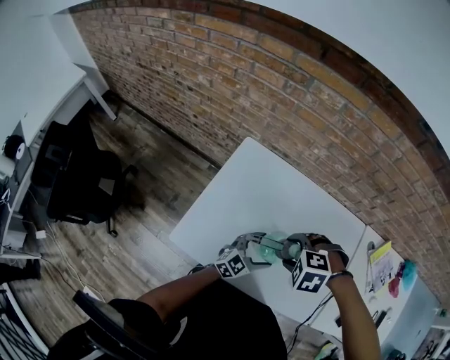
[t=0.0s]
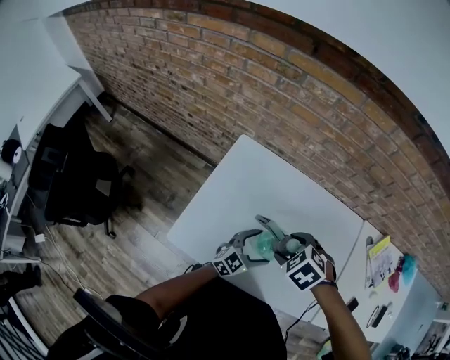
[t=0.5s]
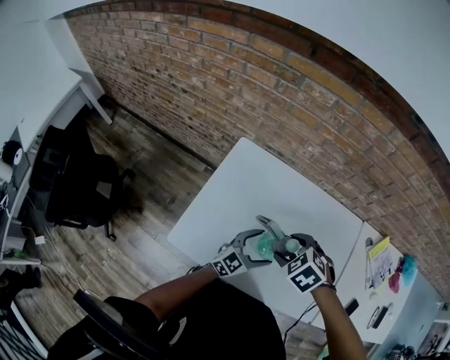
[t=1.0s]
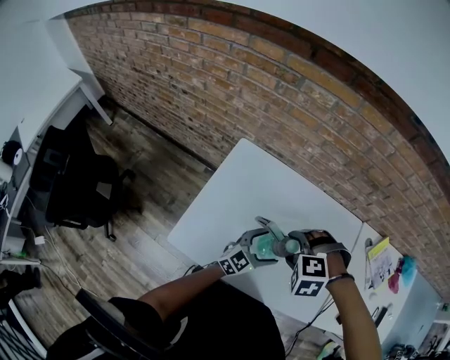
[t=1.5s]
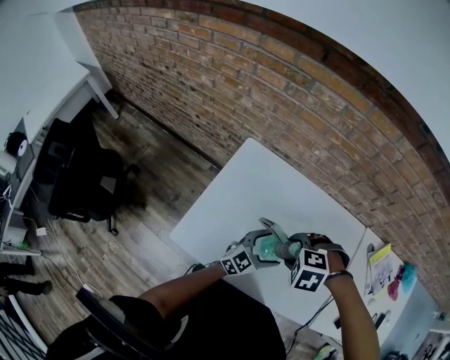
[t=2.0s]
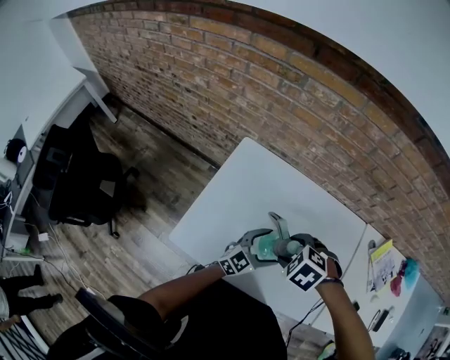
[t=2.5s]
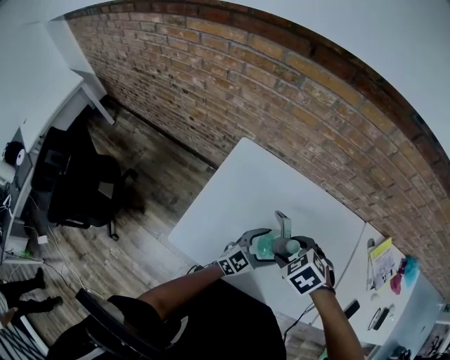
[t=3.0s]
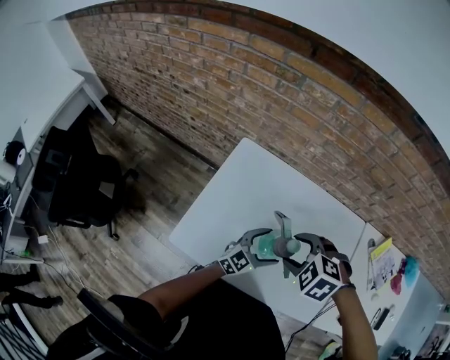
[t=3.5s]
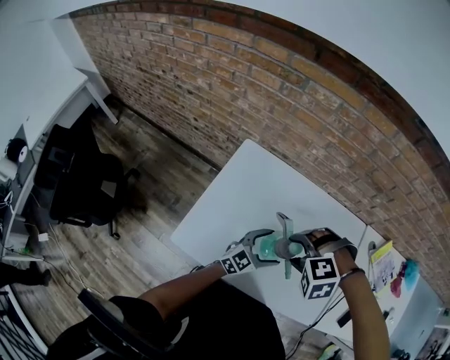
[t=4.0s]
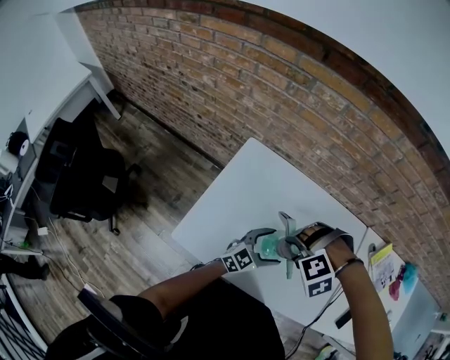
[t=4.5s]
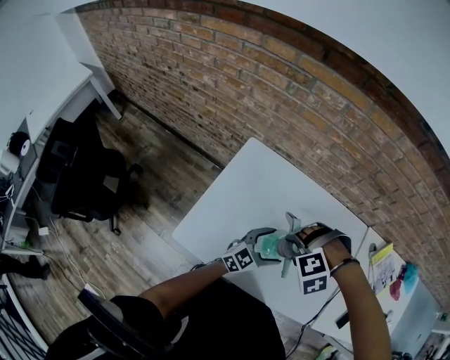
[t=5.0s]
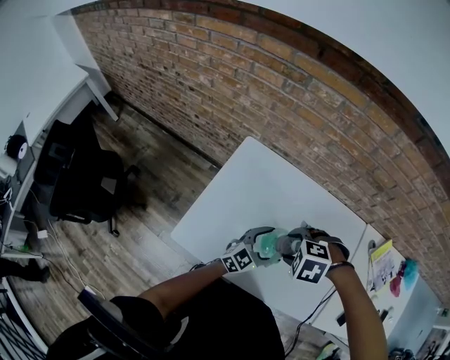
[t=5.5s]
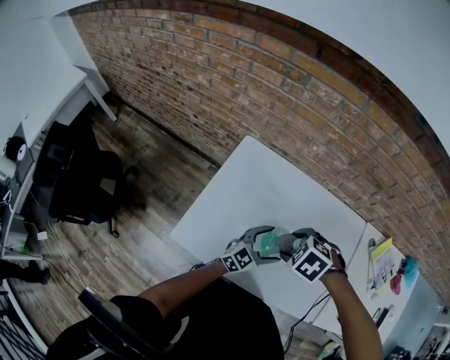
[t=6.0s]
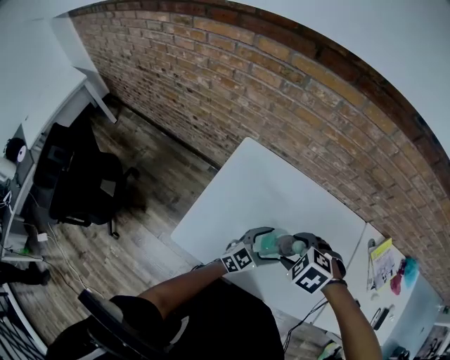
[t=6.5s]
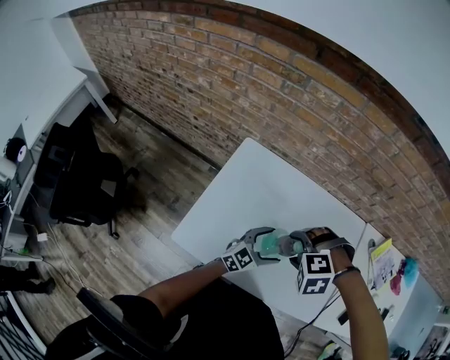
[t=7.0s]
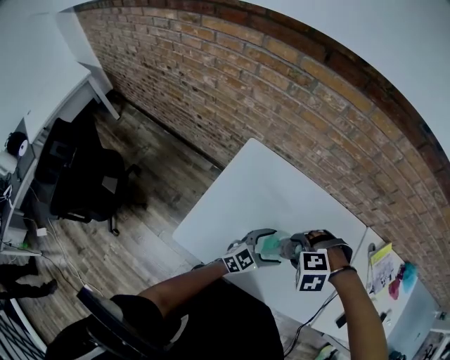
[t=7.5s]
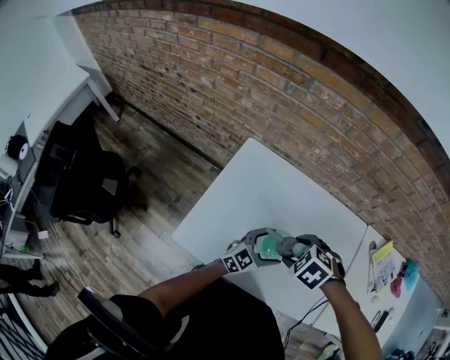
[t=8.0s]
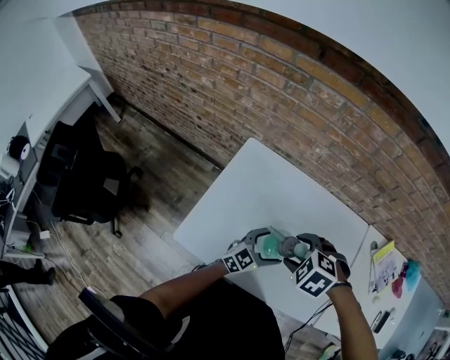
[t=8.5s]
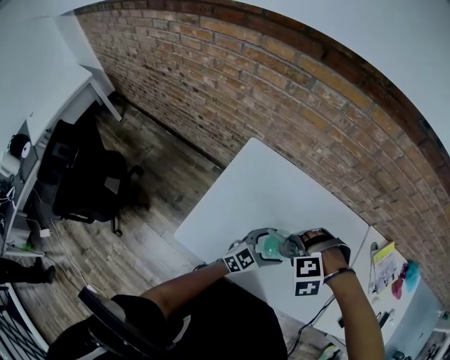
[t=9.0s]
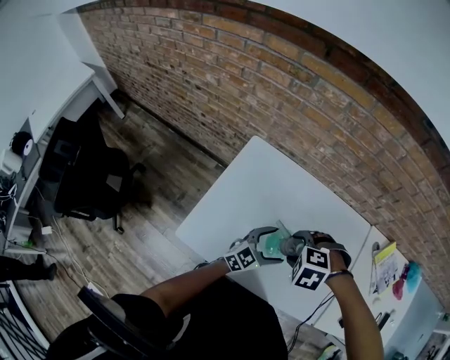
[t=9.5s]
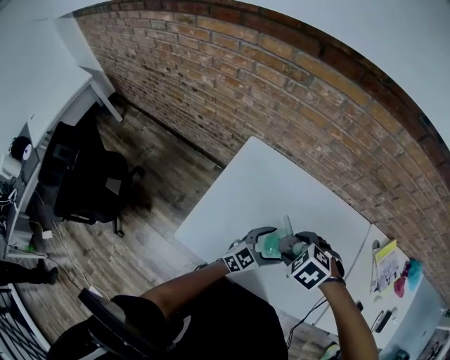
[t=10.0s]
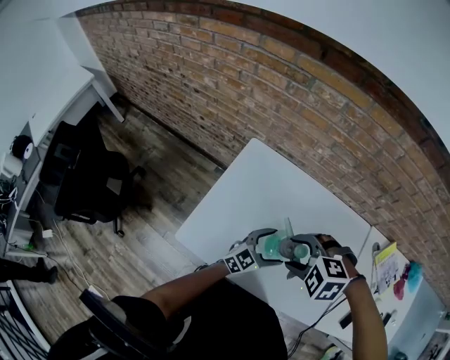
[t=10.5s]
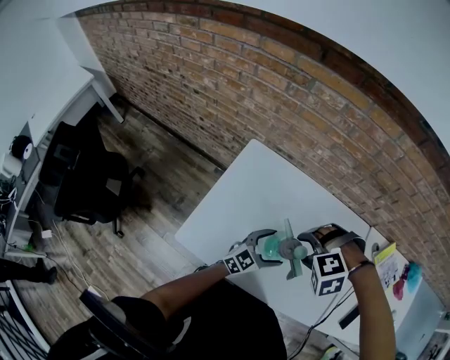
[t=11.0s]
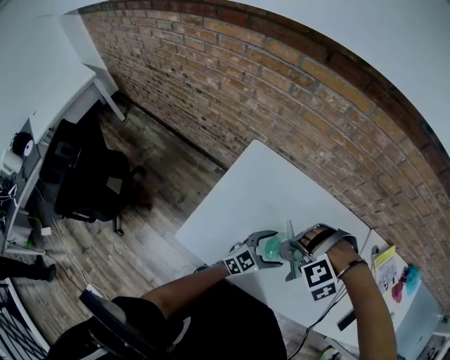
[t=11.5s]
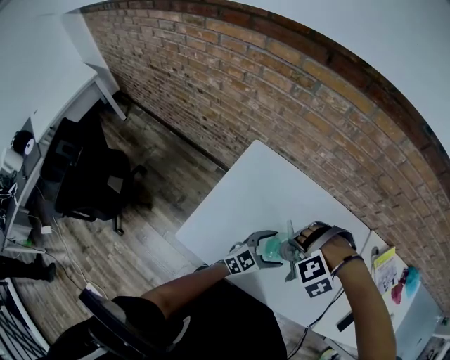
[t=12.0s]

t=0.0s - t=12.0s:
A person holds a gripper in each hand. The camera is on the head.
t=0.0s - t=2.0s: The left gripper moves approximately 5 cm.
t=4.0s - t=6.0s: The right gripper twists approximately 40 degrees clockwise, seen from behind.
t=10.0s - t=12.0s: The right gripper twists about 70 degrees counterclockwise, seen from behind.

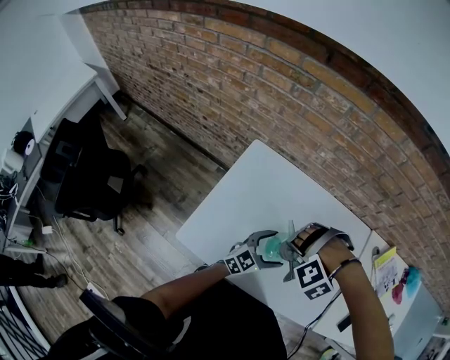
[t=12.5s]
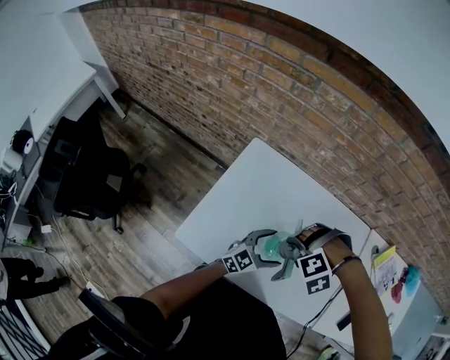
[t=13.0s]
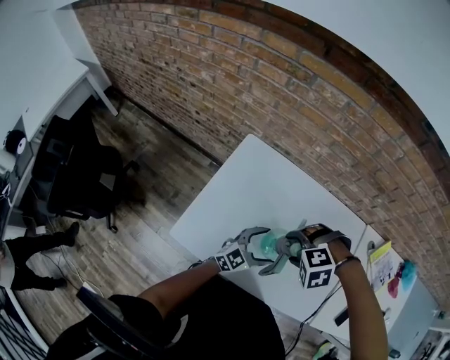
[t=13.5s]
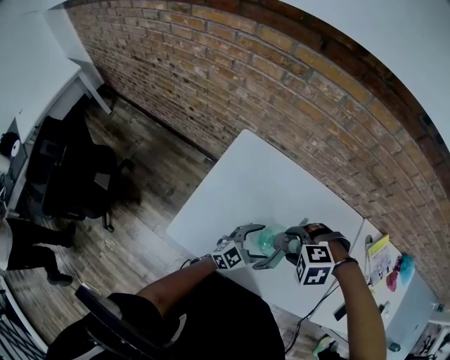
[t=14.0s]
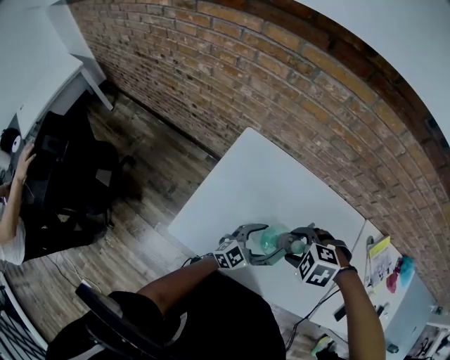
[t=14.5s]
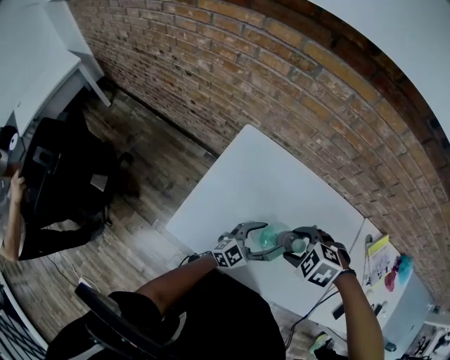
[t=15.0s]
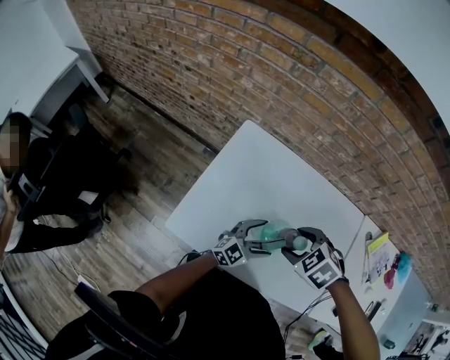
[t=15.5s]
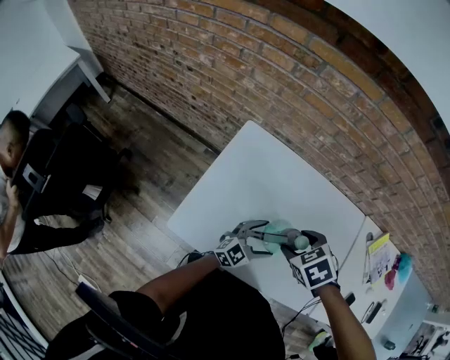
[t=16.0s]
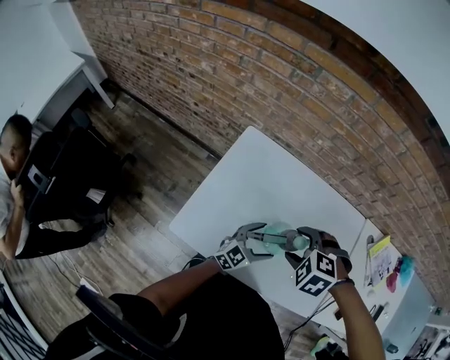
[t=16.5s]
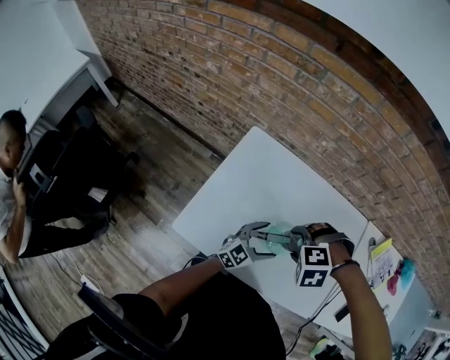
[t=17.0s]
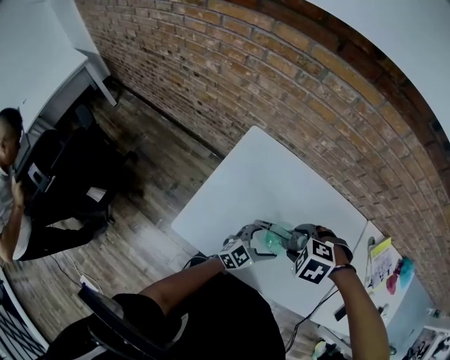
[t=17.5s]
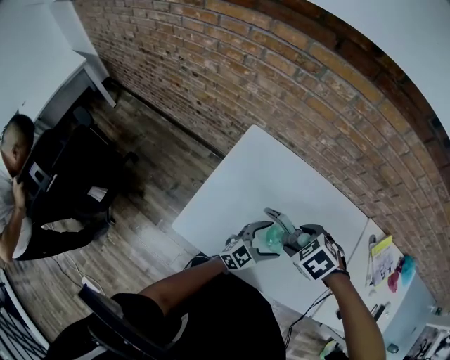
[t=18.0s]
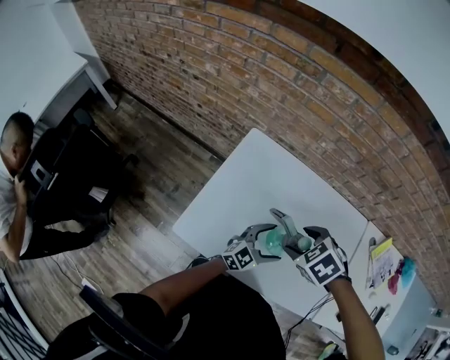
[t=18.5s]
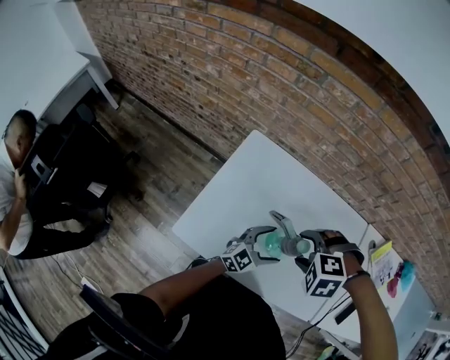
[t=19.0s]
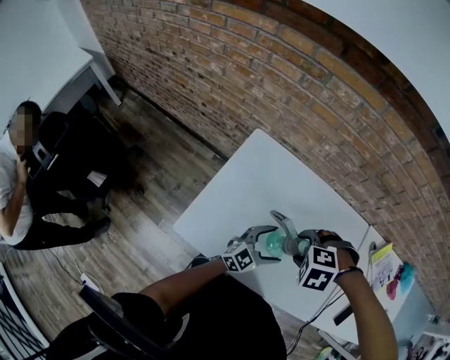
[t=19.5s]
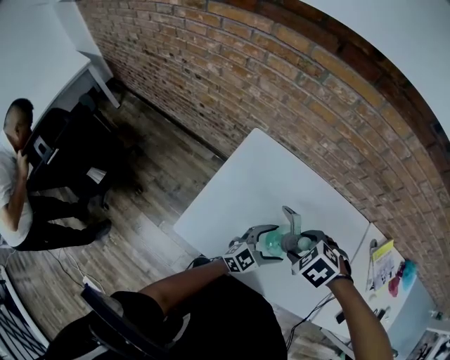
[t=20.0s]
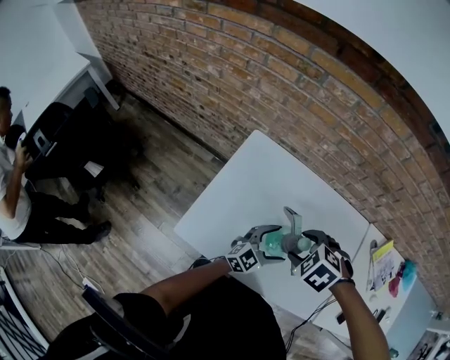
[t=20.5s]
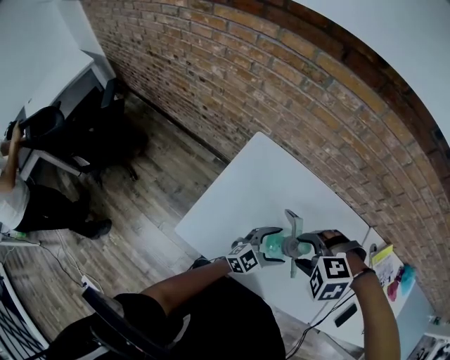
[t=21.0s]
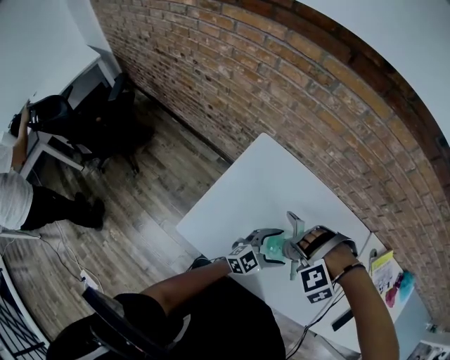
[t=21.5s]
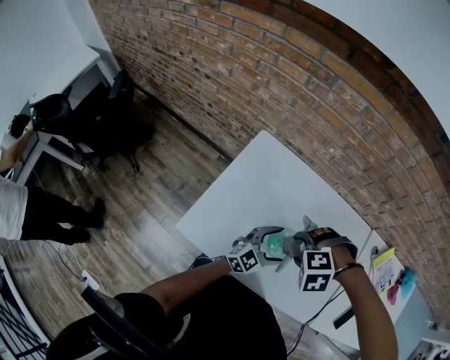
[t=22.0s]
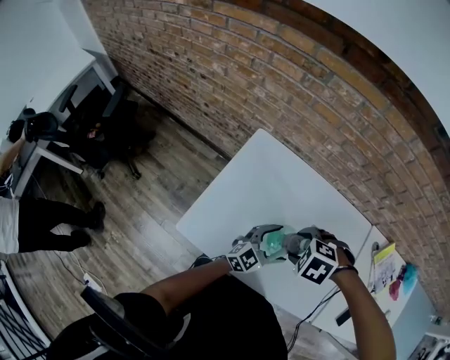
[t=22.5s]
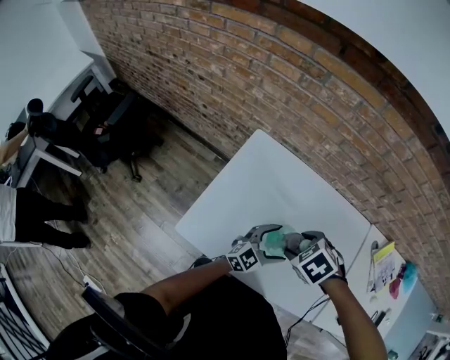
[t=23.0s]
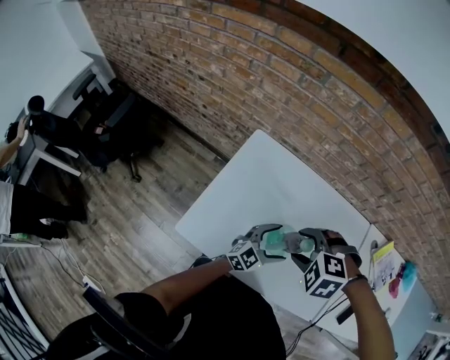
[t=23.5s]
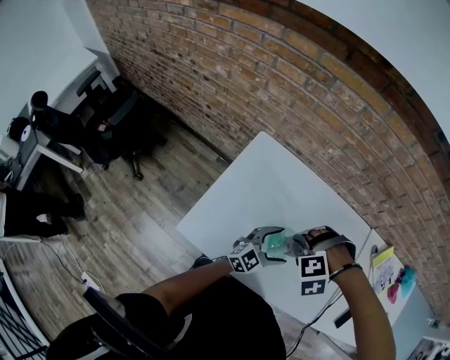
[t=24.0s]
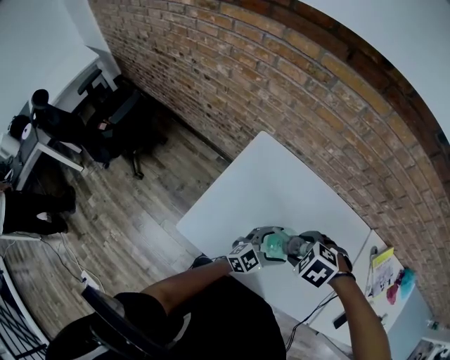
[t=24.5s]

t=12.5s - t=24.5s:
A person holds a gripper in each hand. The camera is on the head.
t=12.5s - t=14.5s: The right gripper rotates around the line of its fingers by approximately 60 degrees, clockwise from behind.
t=16.5s - t=18.5s: The right gripper rotates roughly 30 degrees.

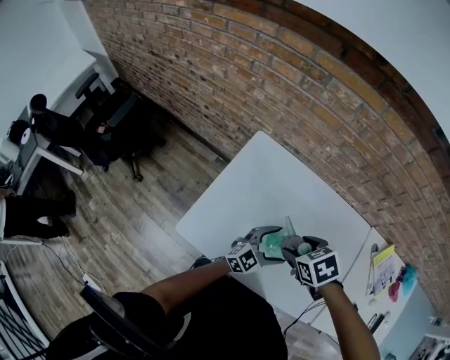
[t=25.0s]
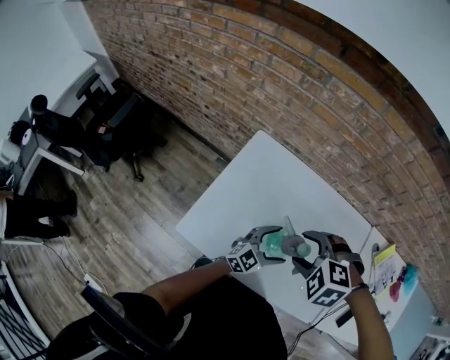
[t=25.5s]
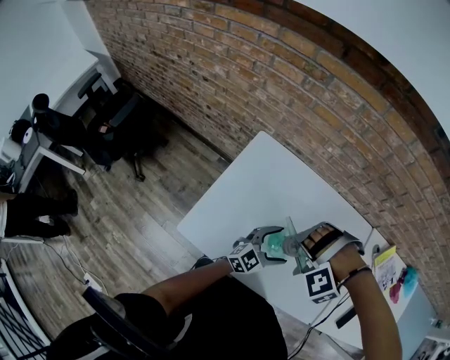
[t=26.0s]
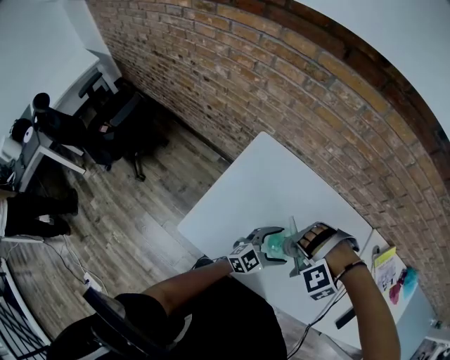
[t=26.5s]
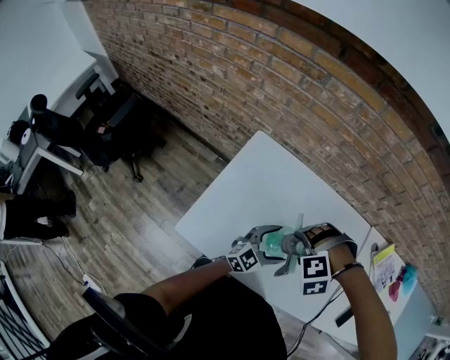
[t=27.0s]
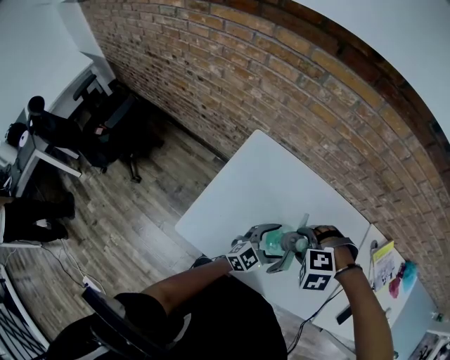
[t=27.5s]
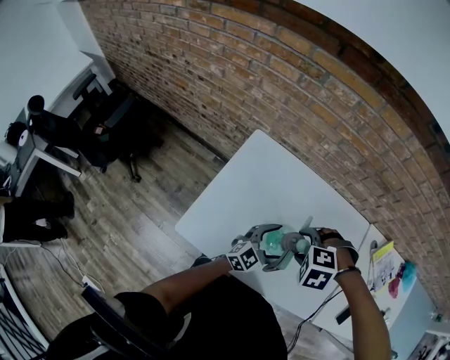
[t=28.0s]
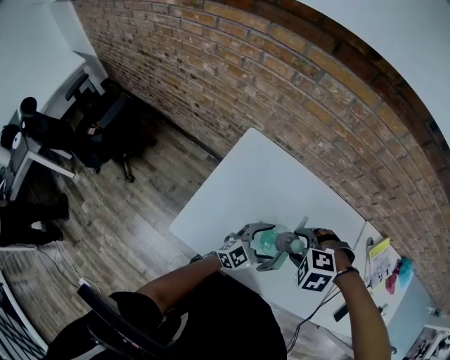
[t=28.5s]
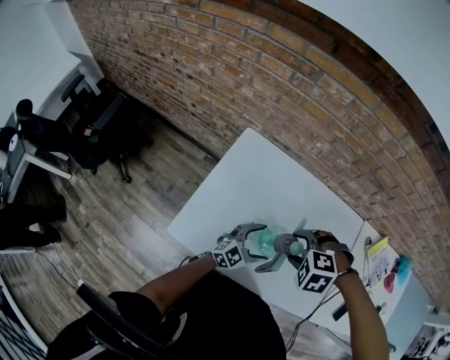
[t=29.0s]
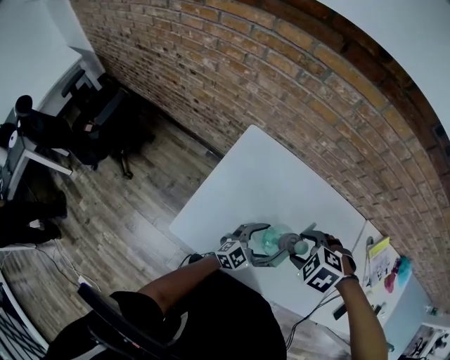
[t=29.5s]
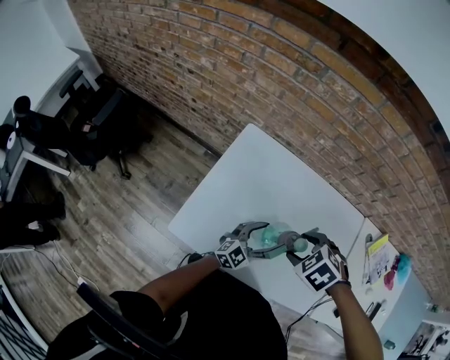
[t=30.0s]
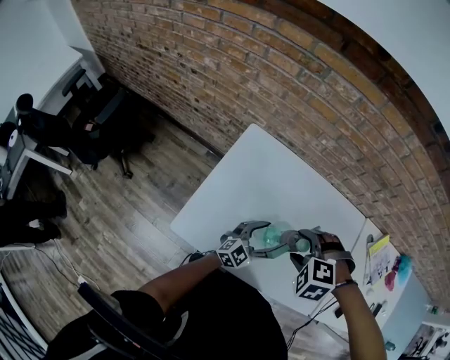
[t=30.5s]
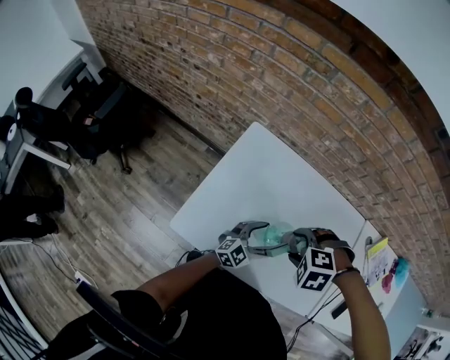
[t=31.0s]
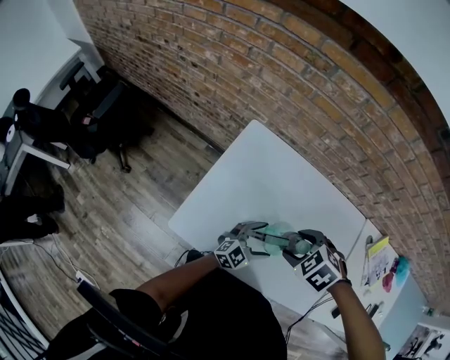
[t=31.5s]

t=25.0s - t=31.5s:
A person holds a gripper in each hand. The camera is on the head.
t=25.0s - t=27.0s: The right gripper rotates around the line of its fingers by approximately 80 degrees, counterclockwise from behind.
t=27.0s - t=29.5s: The right gripper rotates around the line of its fingers by some 40 degrees, clockwise from behind.
